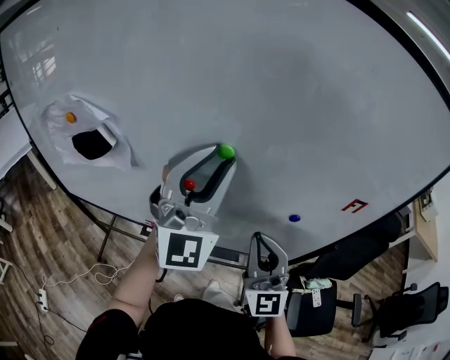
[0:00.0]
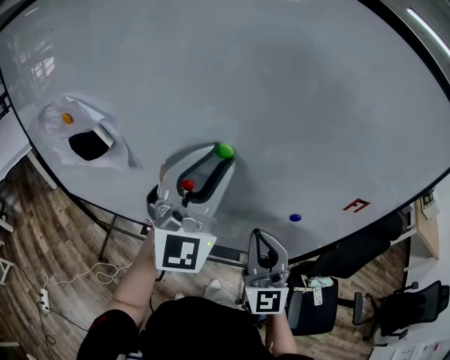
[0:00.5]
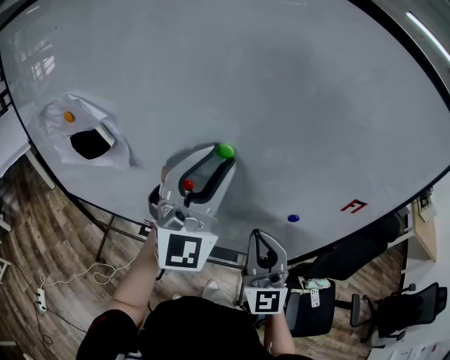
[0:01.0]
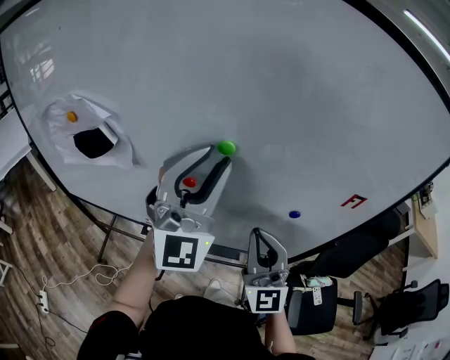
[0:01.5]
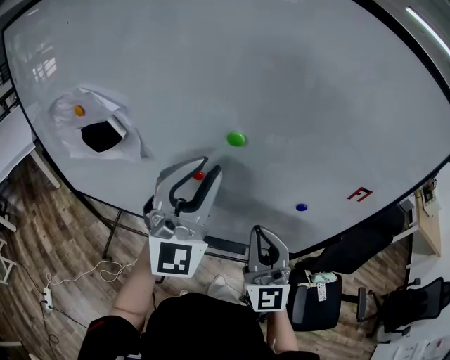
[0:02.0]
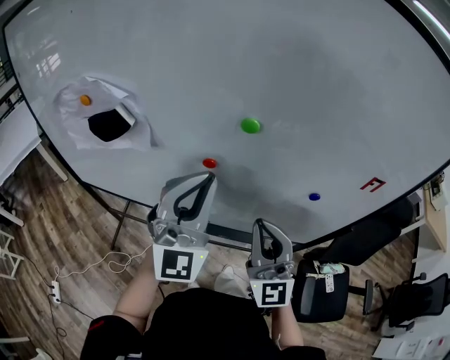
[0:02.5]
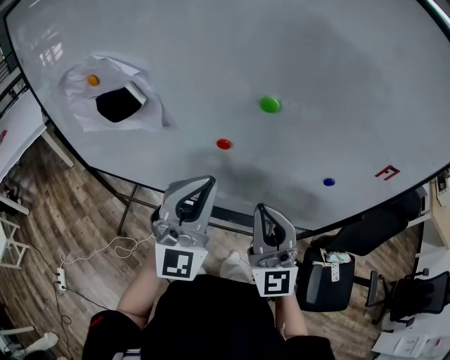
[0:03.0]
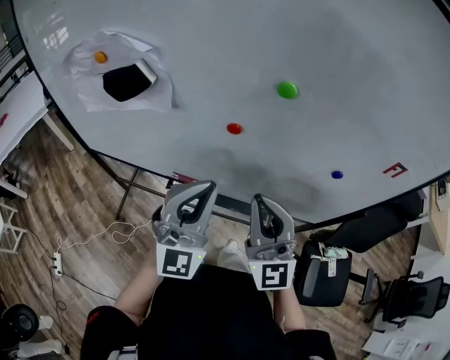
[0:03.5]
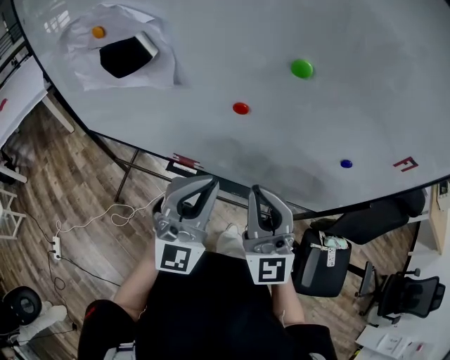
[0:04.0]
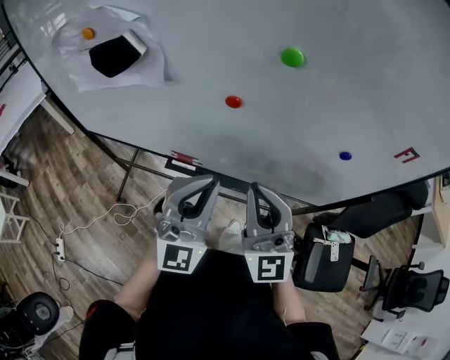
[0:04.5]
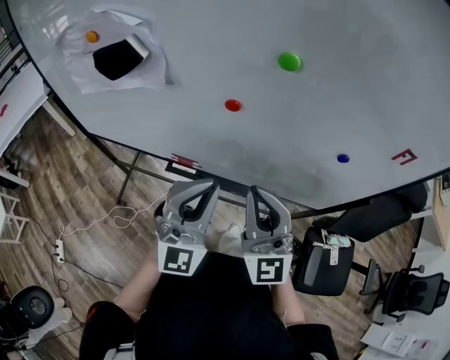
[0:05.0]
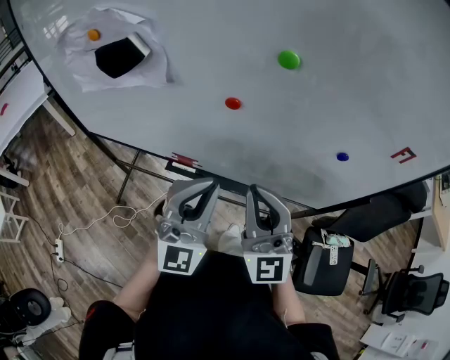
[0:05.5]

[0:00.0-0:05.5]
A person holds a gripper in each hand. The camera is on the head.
0:00.0 to 0:02.0: The left gripper ends up some 5 cm from where it was.
0:02.0 to 0:03.5: The left gripper is displaced downward and backward by about 15 cm, and closes. Meanwhile the right gripper shifts about 5 cm to the left.
0:03.5 to 0:05.5: There are only small adjustments of the grippers.

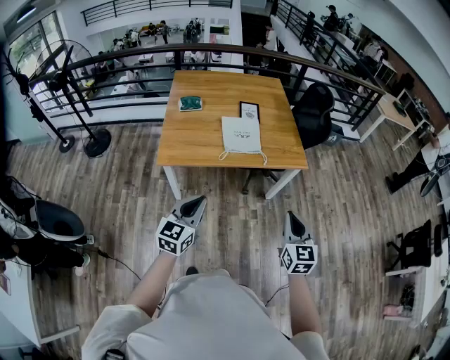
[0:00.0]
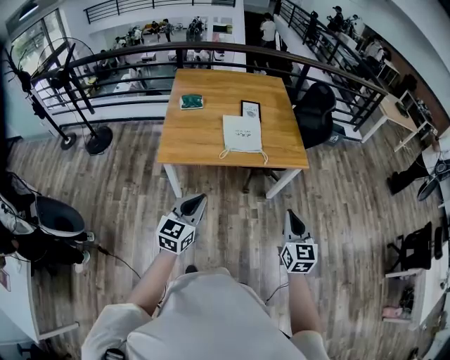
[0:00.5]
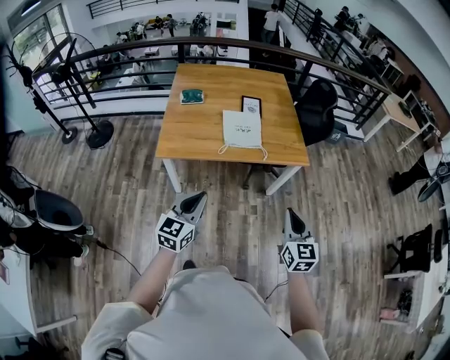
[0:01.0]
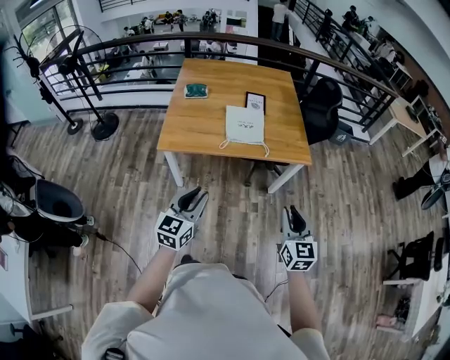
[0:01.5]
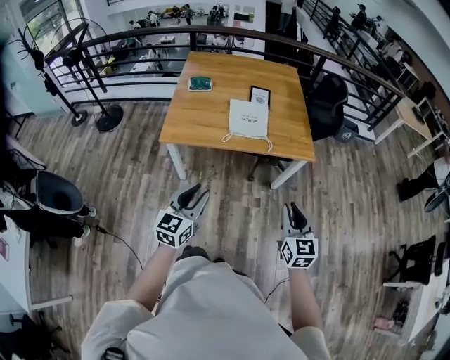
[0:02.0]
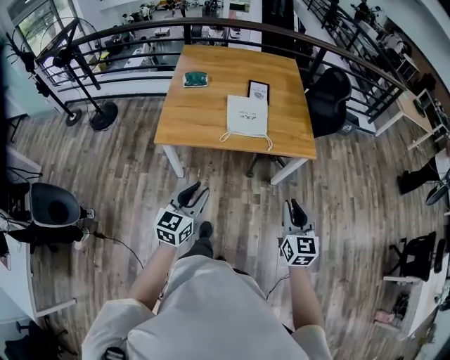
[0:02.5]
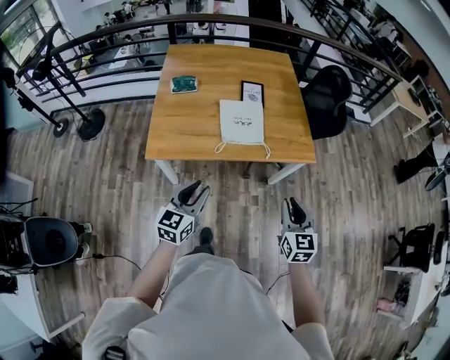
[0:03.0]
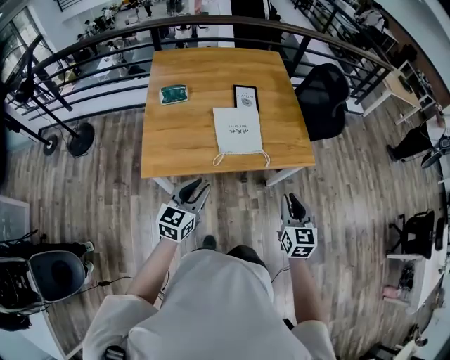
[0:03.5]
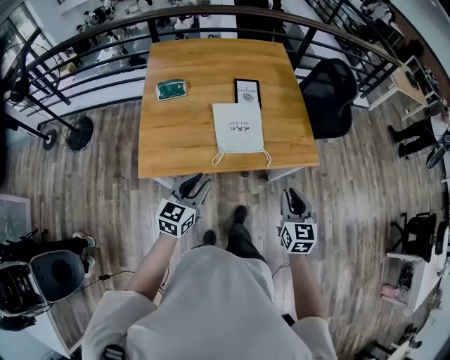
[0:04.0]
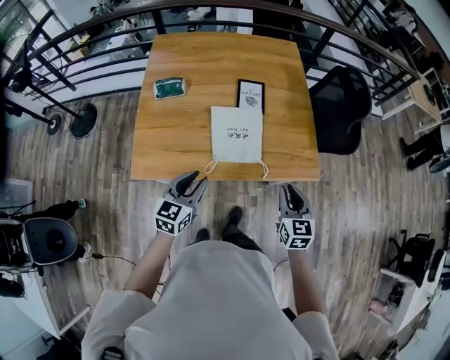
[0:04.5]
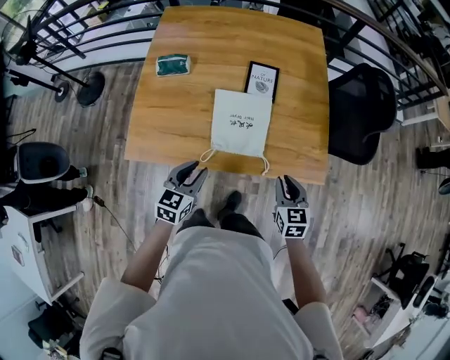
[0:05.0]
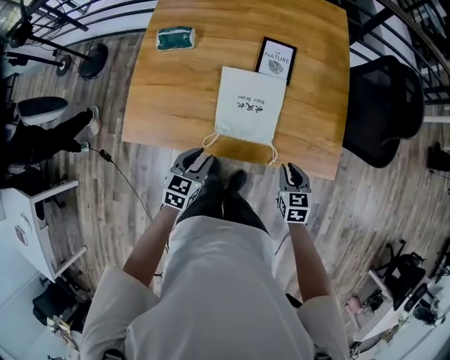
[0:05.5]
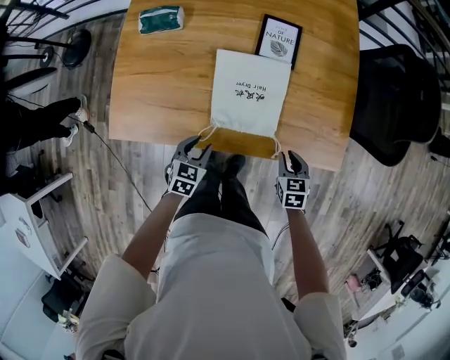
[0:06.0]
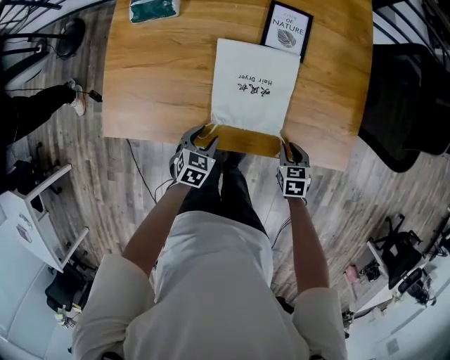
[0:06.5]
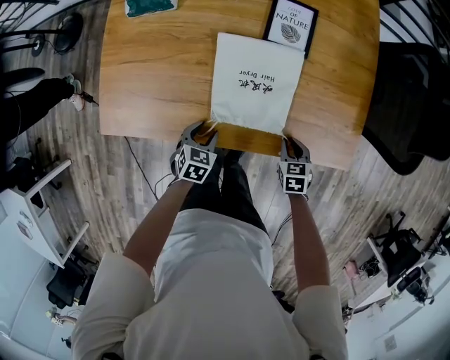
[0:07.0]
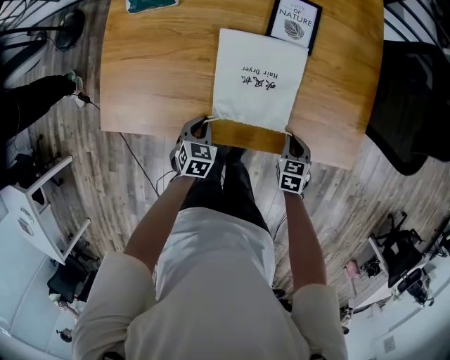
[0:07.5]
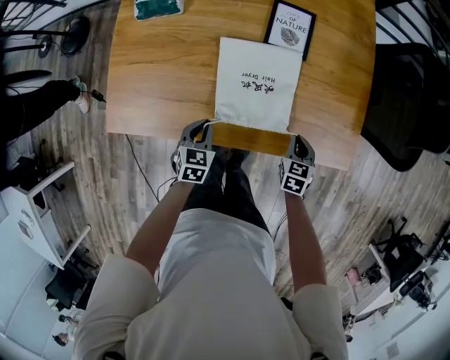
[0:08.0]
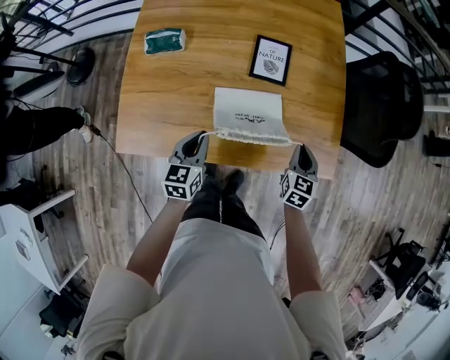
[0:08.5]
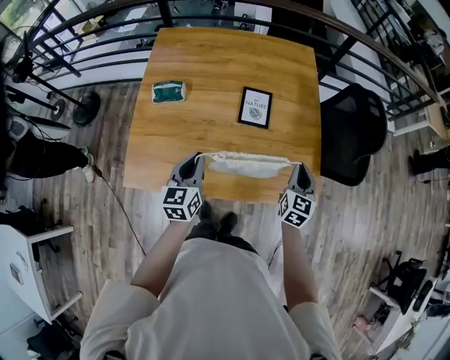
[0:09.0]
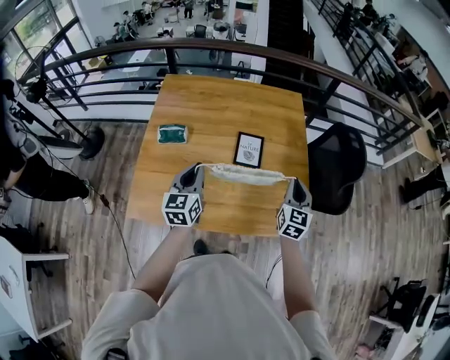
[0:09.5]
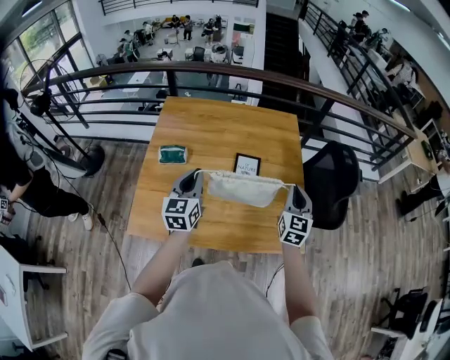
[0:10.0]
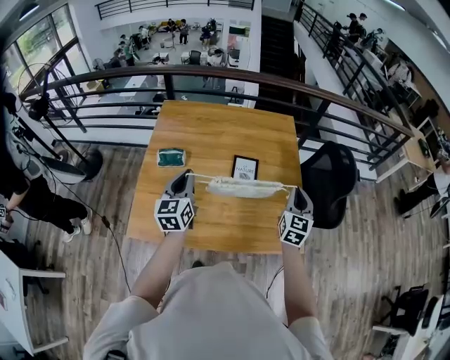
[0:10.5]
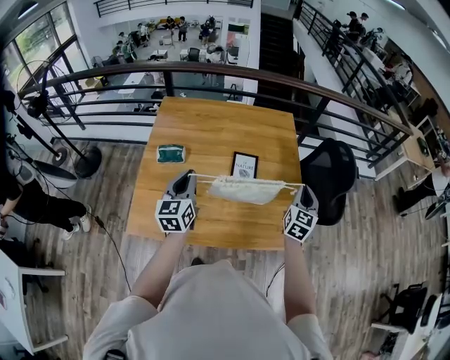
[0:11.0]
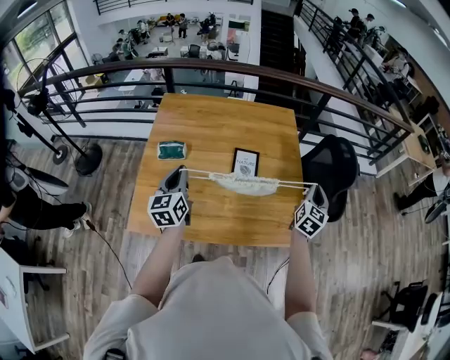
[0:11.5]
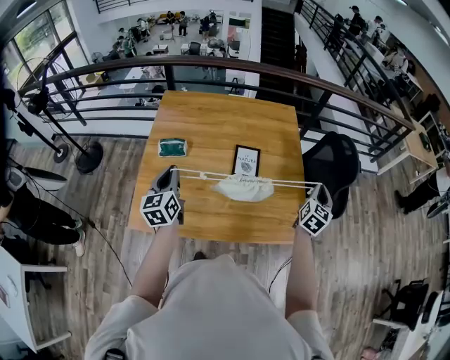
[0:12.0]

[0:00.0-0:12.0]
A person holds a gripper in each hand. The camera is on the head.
0:00.0 to 0:02.0: The left gripper heads to the right, covering roughly 5 cm, and opens its fingers. The right gripper changes place by some 5 cm.
0:02.0 to 0:04.0: Both grippers travel together forward, roughly 30 cm.
0:04.0 to 0:06.0: Both grippers travel together downward and forward, about 35 cm. The right gripper tilts its fingers some 30 degrees downward; the left gripper points its fingers approximately 30 degrees further downward.
0:06.0 to 0:08.0: The left gripper closes up, while the right gripper ends up about 5 cm from where it was.
0:08.0 to 0:10.0: The two grippers go about 40 cm upward. The right gripper tips its fingers upward by roughly 40 degrees. The left gripper points its fingers approximately 40 degrees further upward.
0:10.0 to 0:12.0: The right gripper goes approximately 10 cm to the right, and changes its angle by roughly 20 degrees. The left gripper moves to the left, roughly 10 cm.

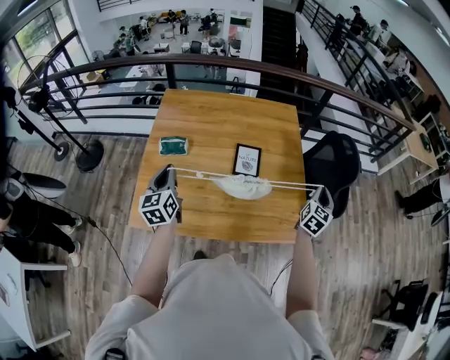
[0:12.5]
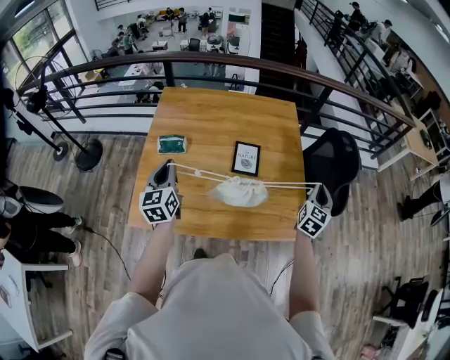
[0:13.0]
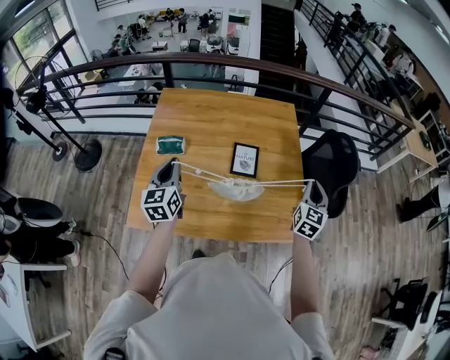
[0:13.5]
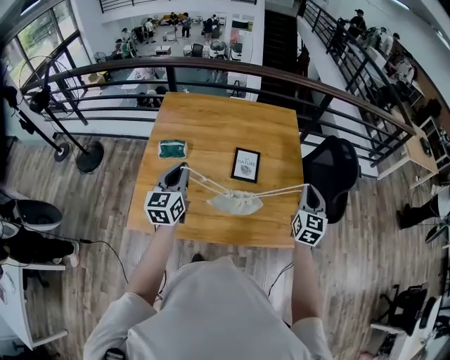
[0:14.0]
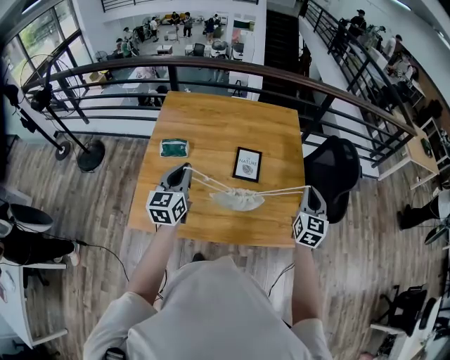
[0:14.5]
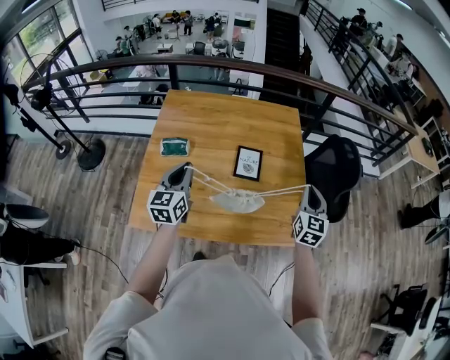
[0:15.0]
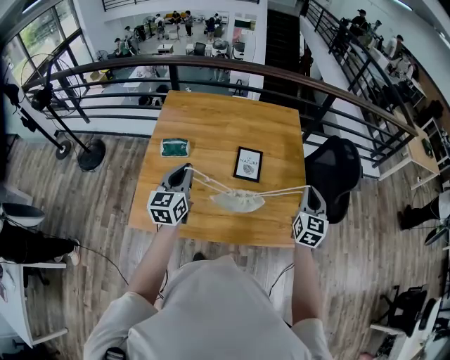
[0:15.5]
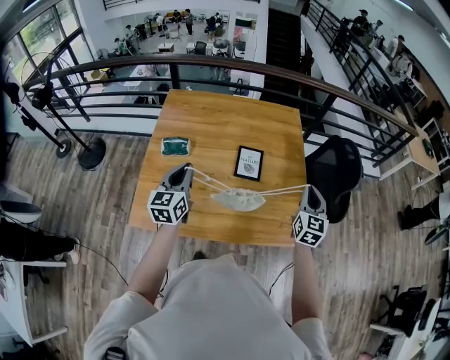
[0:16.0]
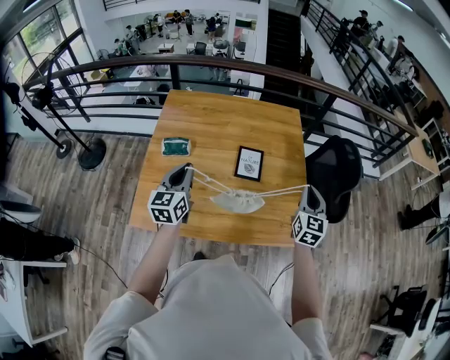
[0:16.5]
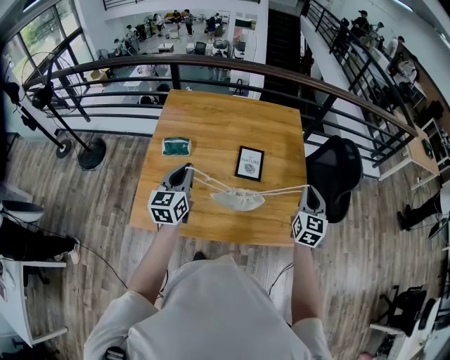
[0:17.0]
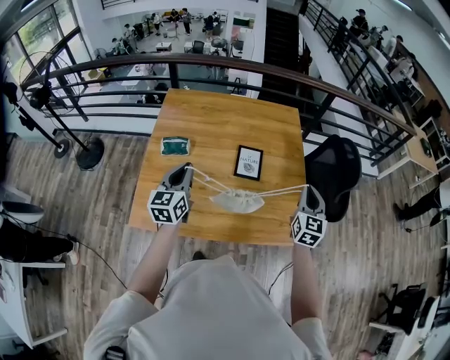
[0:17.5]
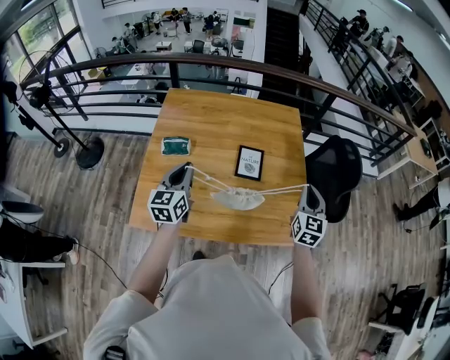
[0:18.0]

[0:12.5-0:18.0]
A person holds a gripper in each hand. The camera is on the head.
0:12.5 to 0:14.5: The left gripper goes some 5 cm to the right. The right gripper travels to the left by approximately 10 cm, and changes its angle by some 20 degrees.
0:14.5 to 0:16.0: Both grippers stay put.
0:16.0 to 0:18.0: The grippers make only small movements.

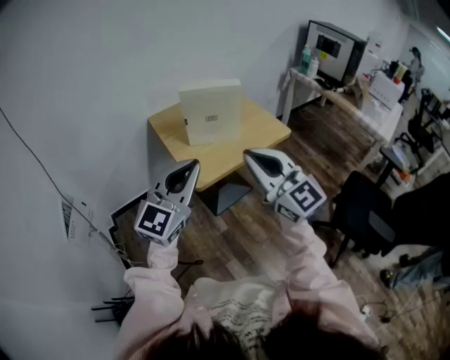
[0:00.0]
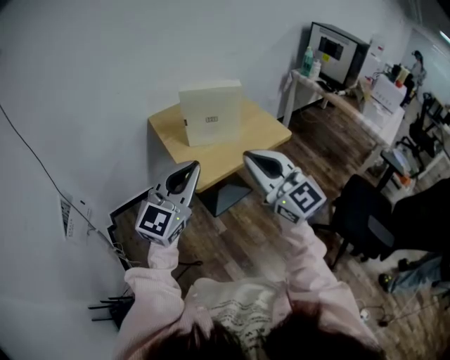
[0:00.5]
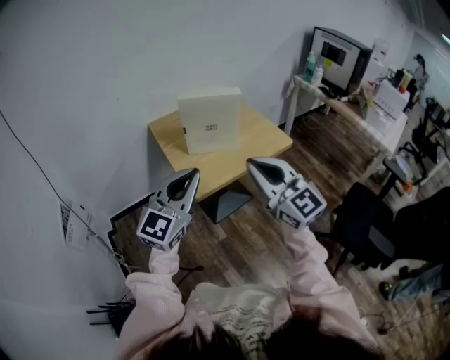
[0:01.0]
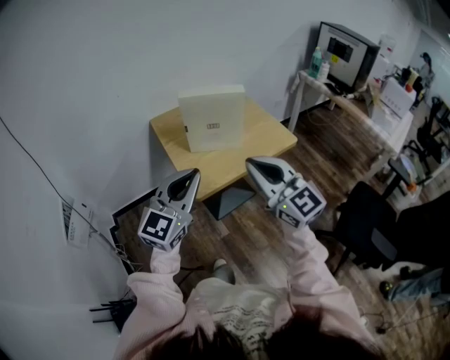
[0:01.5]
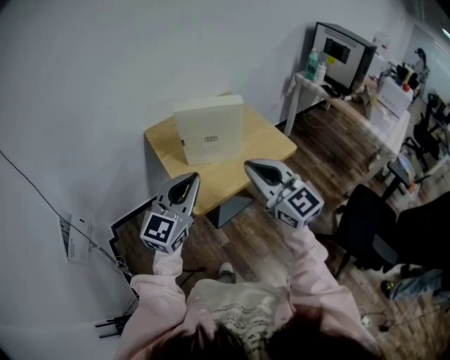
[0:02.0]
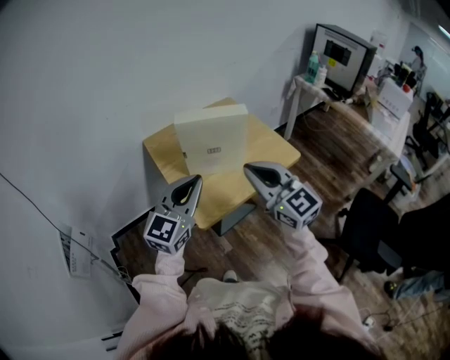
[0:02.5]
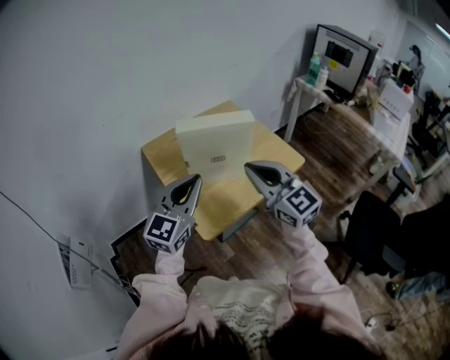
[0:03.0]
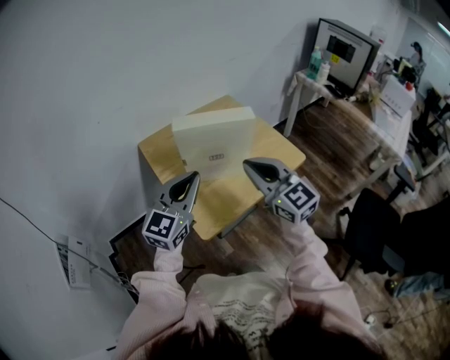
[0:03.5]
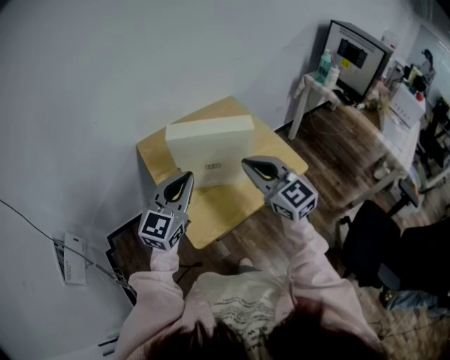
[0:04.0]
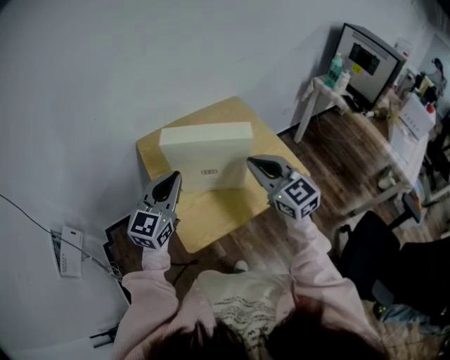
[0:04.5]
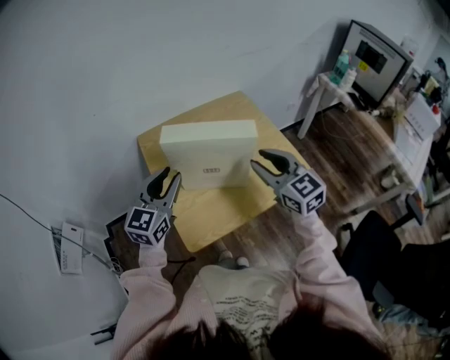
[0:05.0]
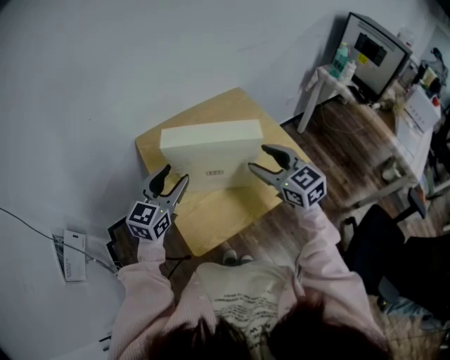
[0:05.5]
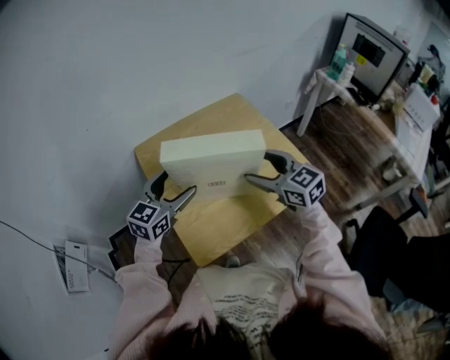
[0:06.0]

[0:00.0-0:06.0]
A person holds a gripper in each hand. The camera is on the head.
0:00.0 to 0:02.0: The grippers both shift forward by about 10 cm.
0:02.0 to 0:04.0: Both grippers move forward, roughly 15 cm.
0:04.0 to 0:06.0: The two grippers go about 15 cm forward and downward. The left gripper opens its fingers, while the right gripper opens up.
